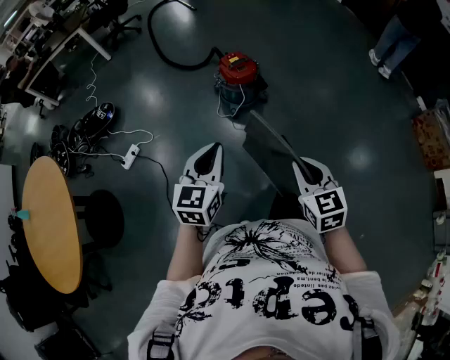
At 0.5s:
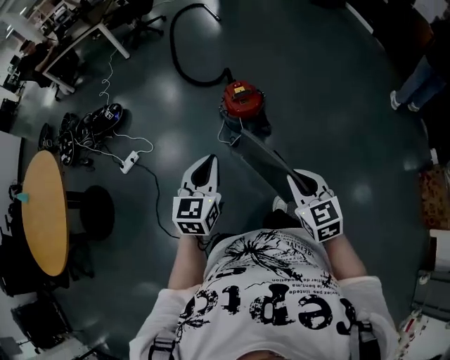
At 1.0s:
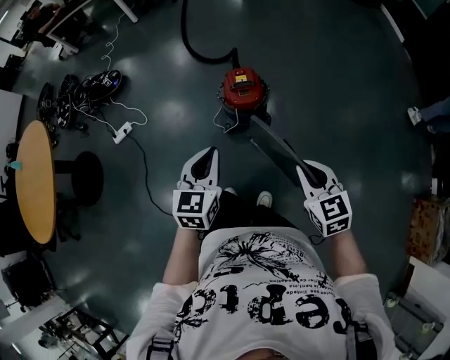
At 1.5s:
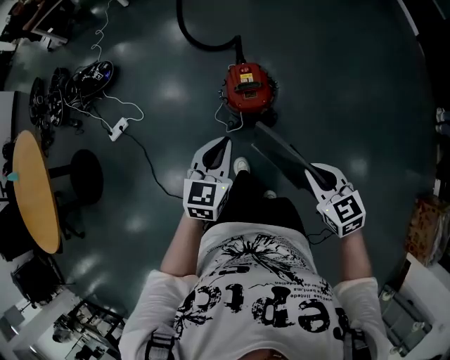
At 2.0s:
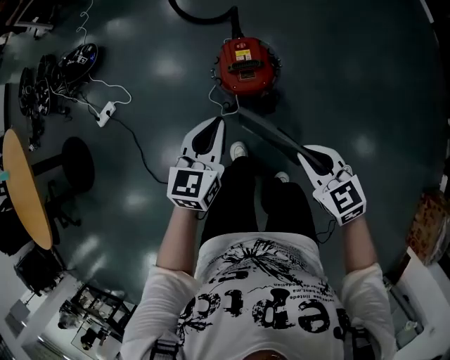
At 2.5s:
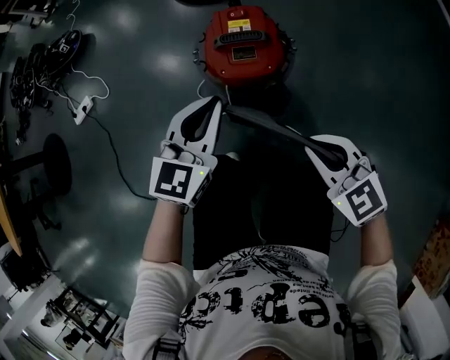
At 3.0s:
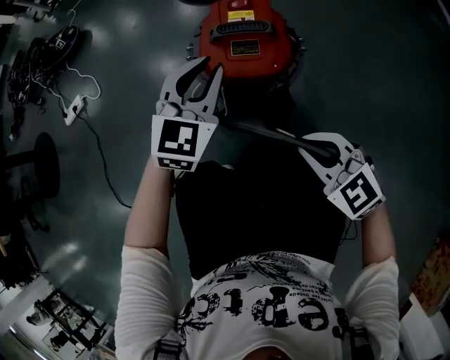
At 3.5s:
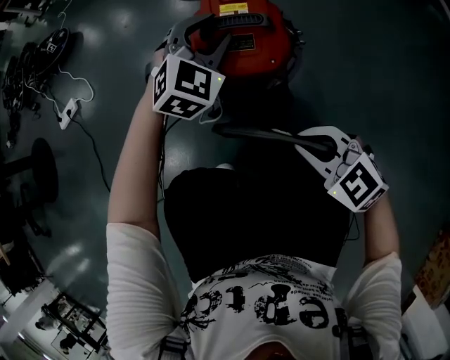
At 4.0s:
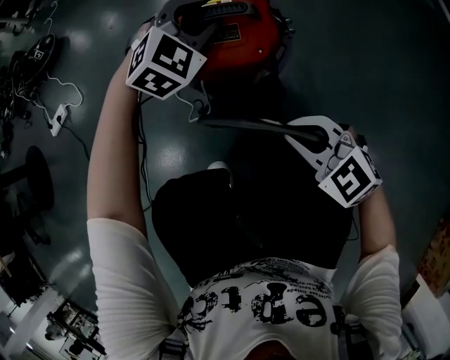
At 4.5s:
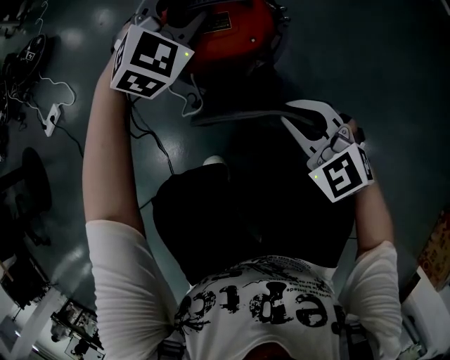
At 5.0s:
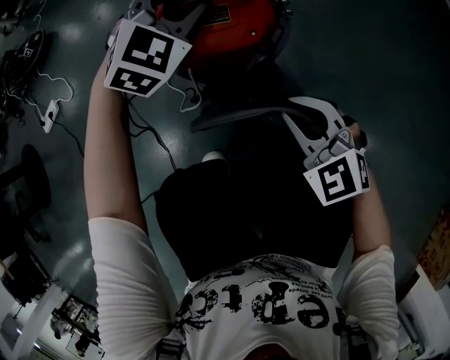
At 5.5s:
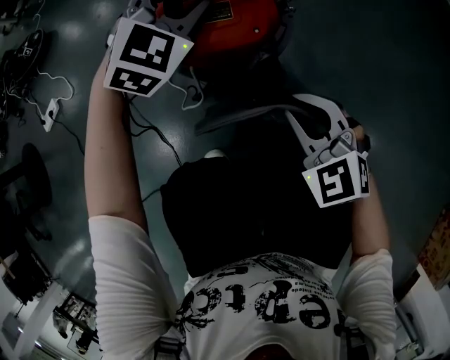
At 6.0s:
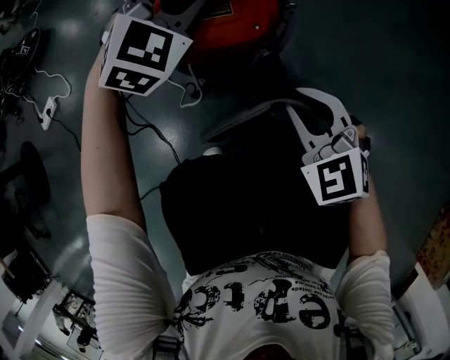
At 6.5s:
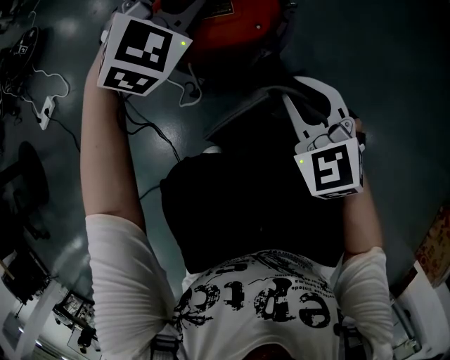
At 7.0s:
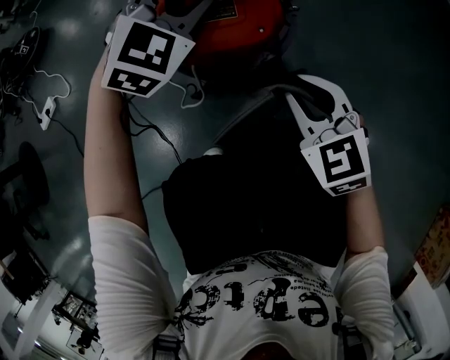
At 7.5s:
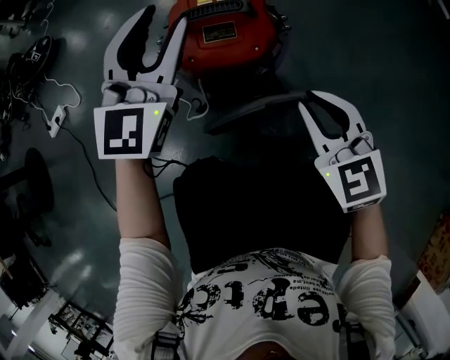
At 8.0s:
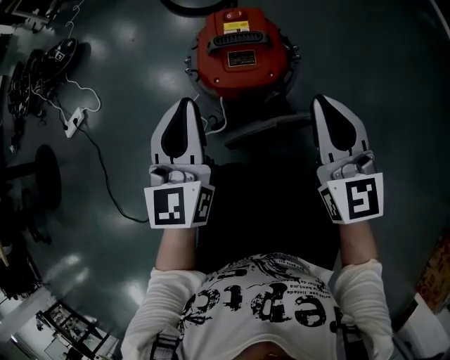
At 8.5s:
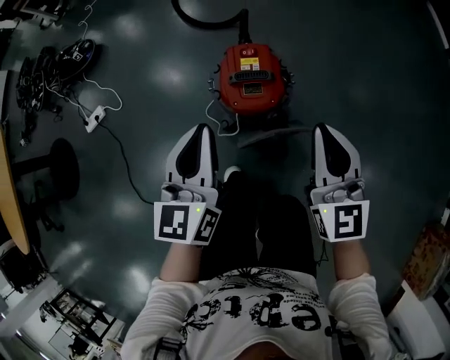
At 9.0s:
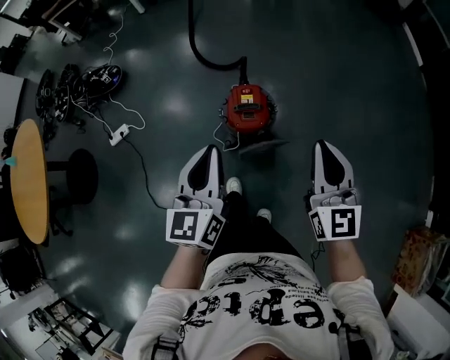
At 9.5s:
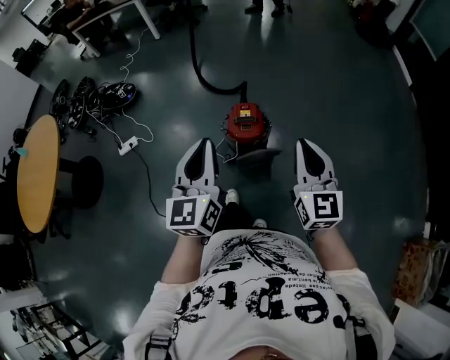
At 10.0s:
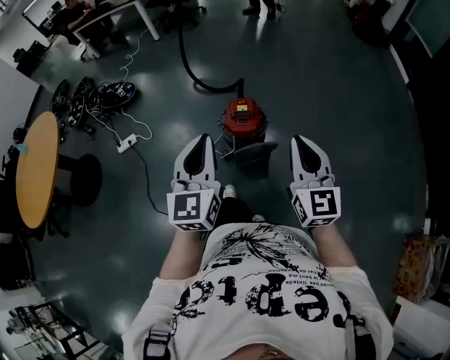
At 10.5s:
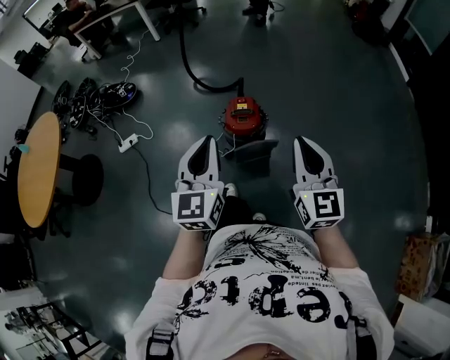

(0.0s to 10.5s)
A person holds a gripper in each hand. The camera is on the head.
0.0s - 2.0s: The pair of grippers is taken approximately 50 cm. The right gripper changes its angle by about 40 degrees.
2.0s - 4.0s: The right gripper moves downward, approximately 35 cm, and turns by roughly 30 degrees, while the left gripper is displaced downward and forward by approximately 40 cm, rolls clockwise, seen from behind, by roughly 50 degrees, and opens up.
4.0s - 6.5s: The right gripper is displaced forward by approximately 5 cm, and swivels roughly 30 degrees.
6.5s - 8.5s: The right gripper goes roughly 35 cm upward, and changes its angle by some 40 degrees. Meanwhile the left gripper goes roughly 35 cm upward and backward, rolls counterclockwise, seen from behind, by about 60 degrees, and closes up.
8.5s - 10.5s: The grippers both shift upward and backward by some 40 cm.

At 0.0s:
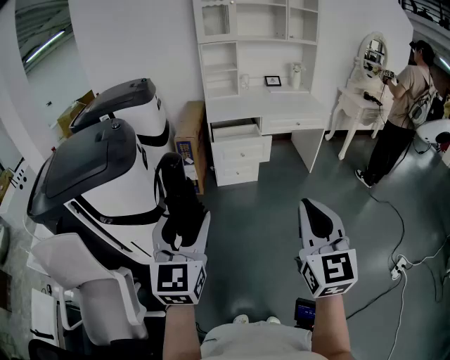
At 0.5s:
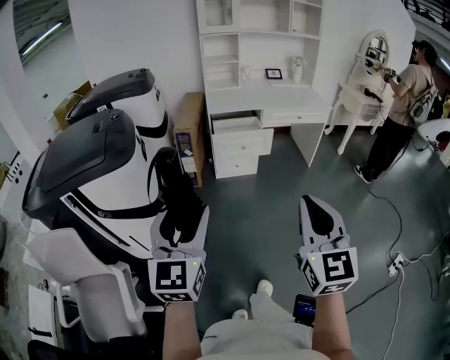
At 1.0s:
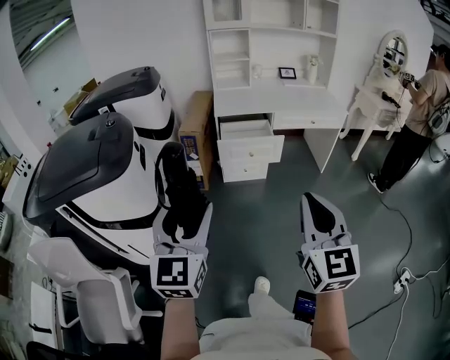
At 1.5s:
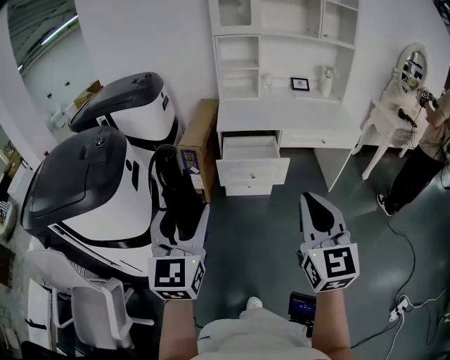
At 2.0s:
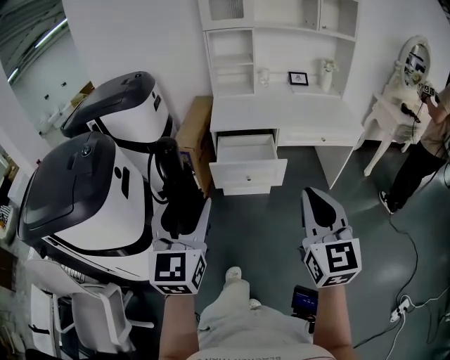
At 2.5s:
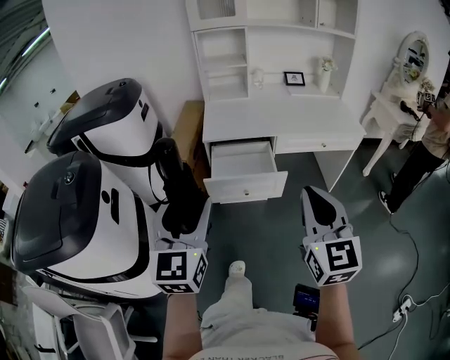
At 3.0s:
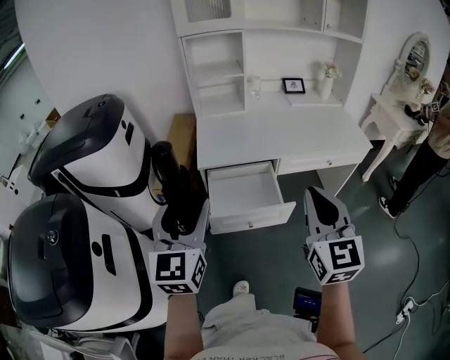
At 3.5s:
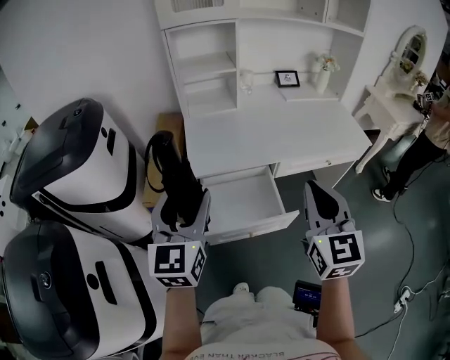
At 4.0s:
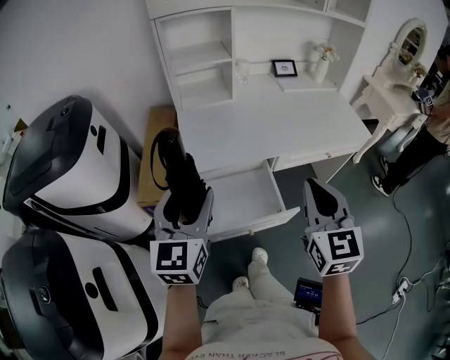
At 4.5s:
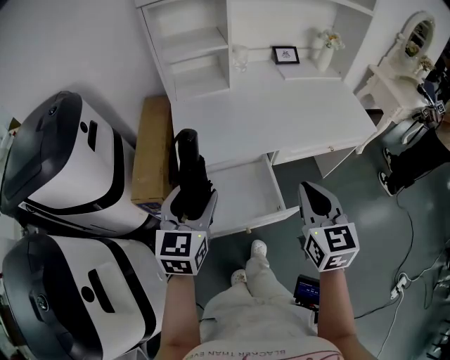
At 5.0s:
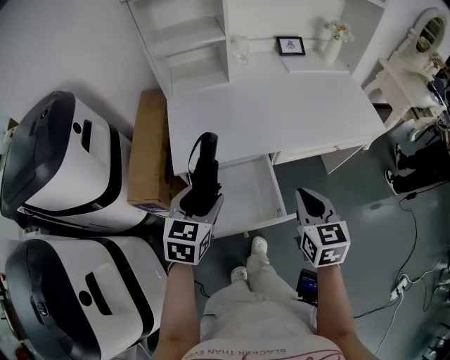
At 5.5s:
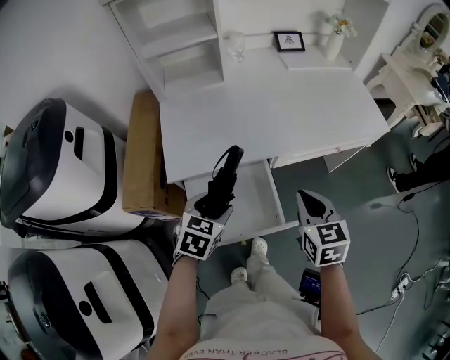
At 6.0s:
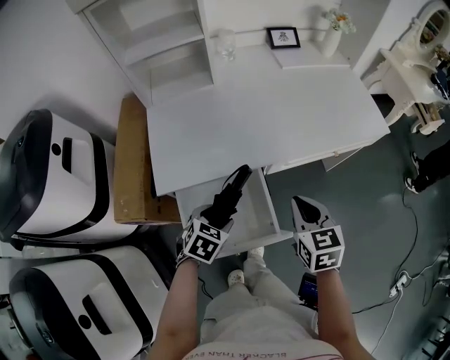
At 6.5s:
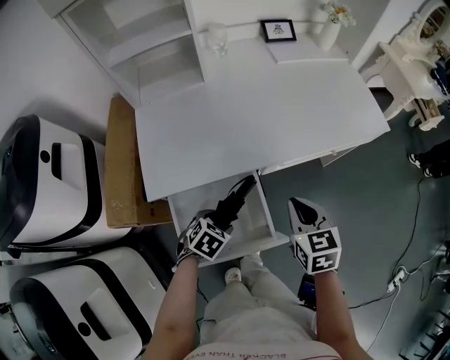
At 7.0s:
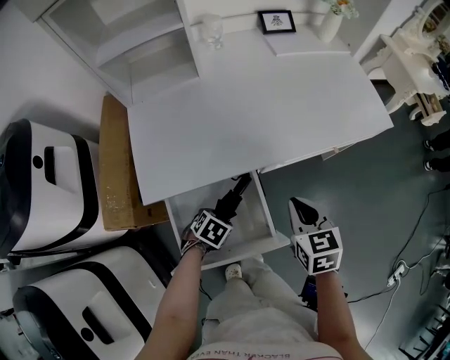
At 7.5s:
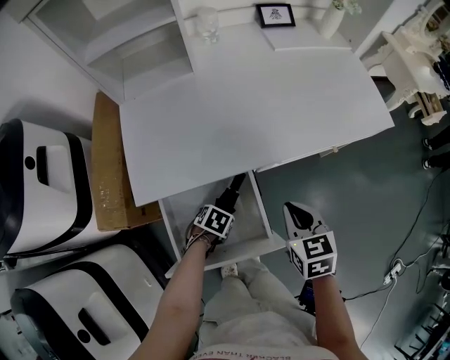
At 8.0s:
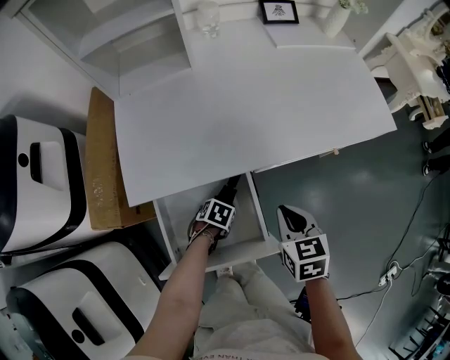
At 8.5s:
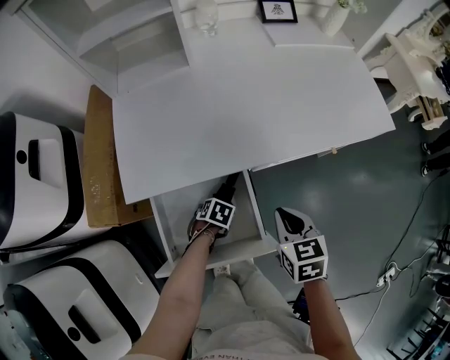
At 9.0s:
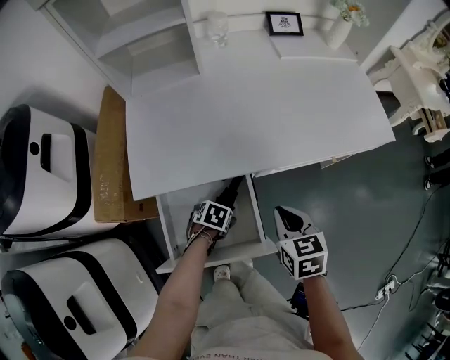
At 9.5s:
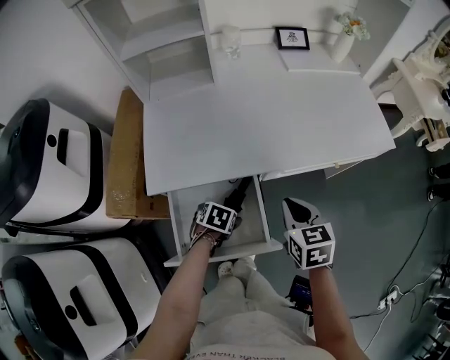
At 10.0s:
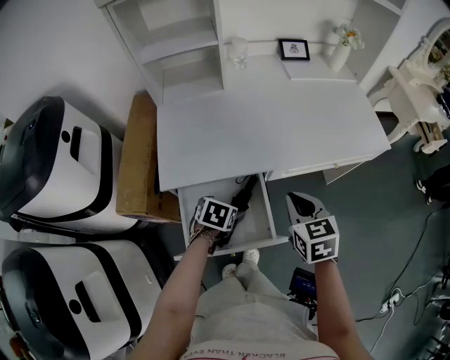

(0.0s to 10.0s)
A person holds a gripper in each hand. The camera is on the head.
0.0s - 2.0s: The two grippers go approximately 30 cm forward.
2.0s - 4.0s: The two grippers go about 40 cm forward.
4.0s - 6.0s: The right gripper goes about 25 cm downward and forward, and changes its angle by roughly 30 degrees. Meanwhile the left gripper moves downward, some 30 cm, and angles its fingers downward, by some 50 degrees.
6.0s - 8.0s: The right gripper moves downward, about 10 cm; the left gripper is displaced downward by approximately 20 cm, and swivels some 30 degrees.
8.0s - 10.0s: The right gripper is displaced upward by approximately 10 cm, while the left gripper heads upward, covering roughly 15 cm, rotates roughly 20 degrees, and opens up.

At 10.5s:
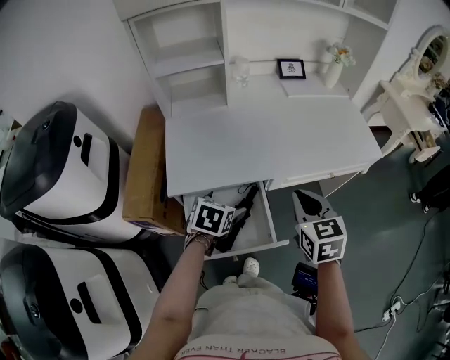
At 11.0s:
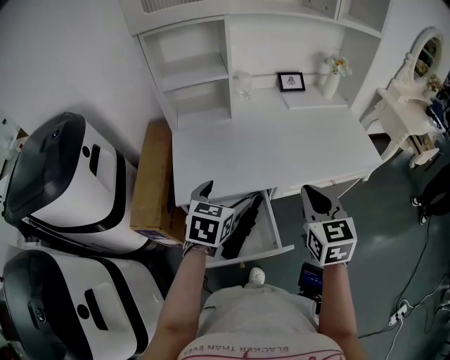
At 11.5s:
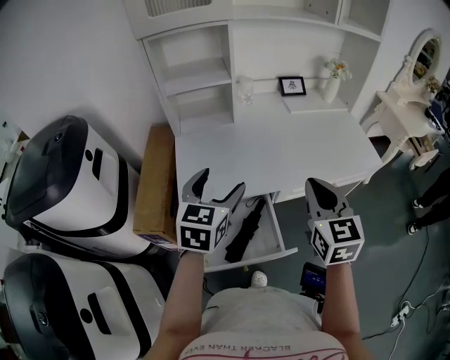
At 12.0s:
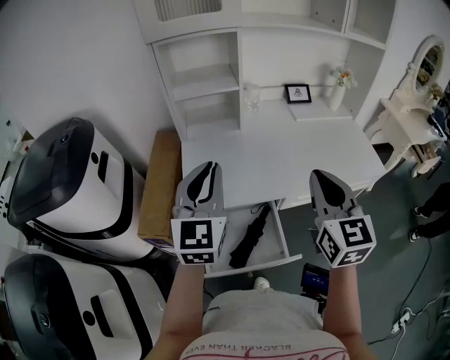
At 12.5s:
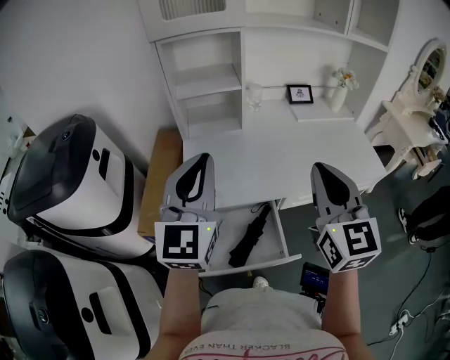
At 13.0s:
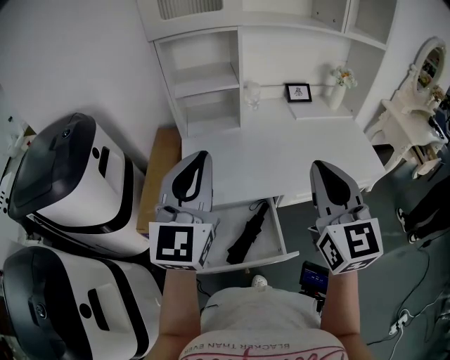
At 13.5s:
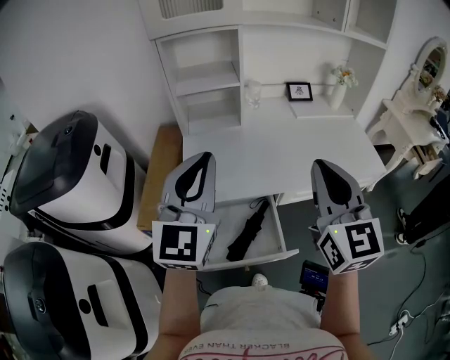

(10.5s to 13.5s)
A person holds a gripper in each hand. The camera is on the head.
10.5s - 12.0s: The right gripper travels upward by approximately 15 cm, and swivels some 20 degrees. Meanwhile the left gripper is displaced upward by roughly 30 cm, angles its fingers upward, by roughly 50 degrees, and closes up.
12.0s - 13.5s: The grippers both shift upward by approximately 5 cm.

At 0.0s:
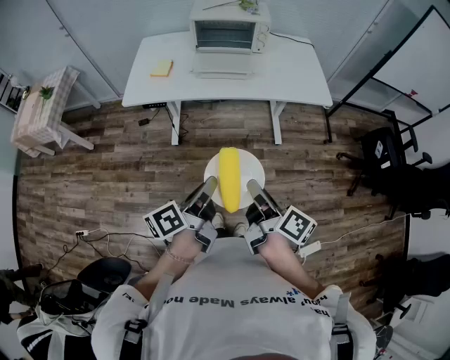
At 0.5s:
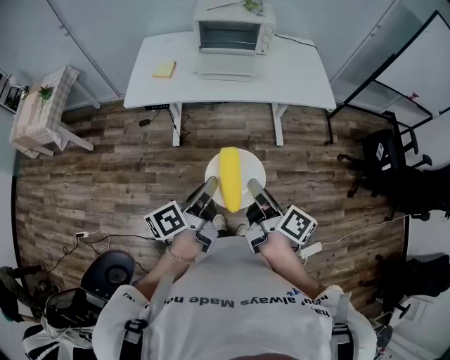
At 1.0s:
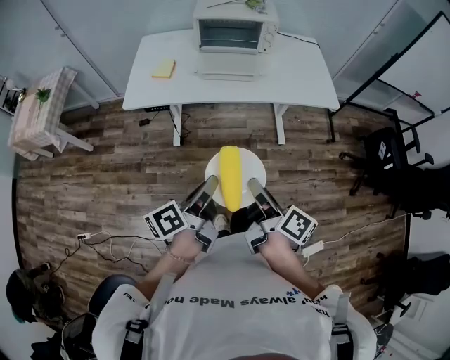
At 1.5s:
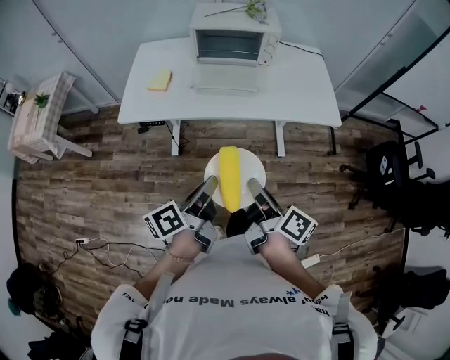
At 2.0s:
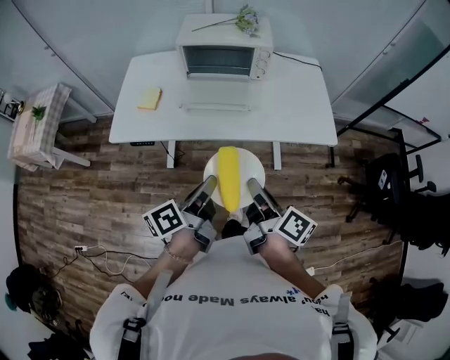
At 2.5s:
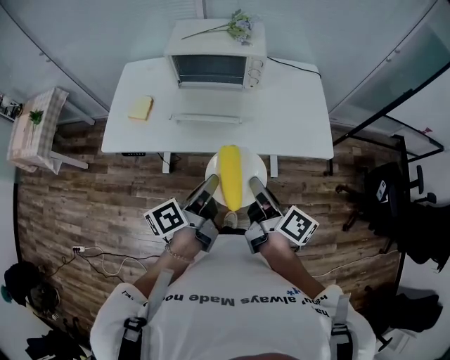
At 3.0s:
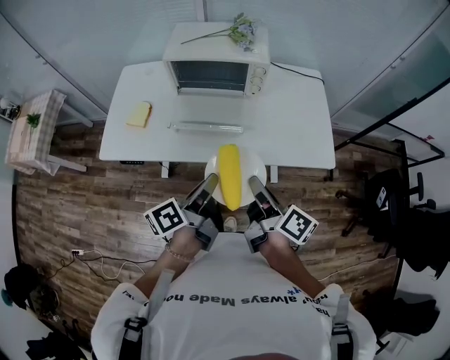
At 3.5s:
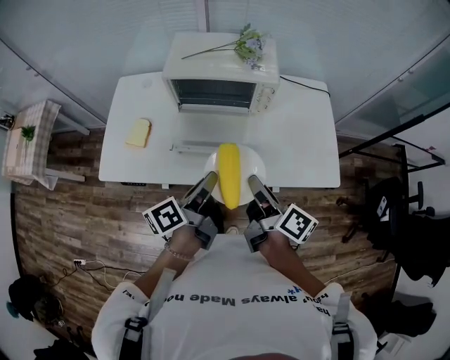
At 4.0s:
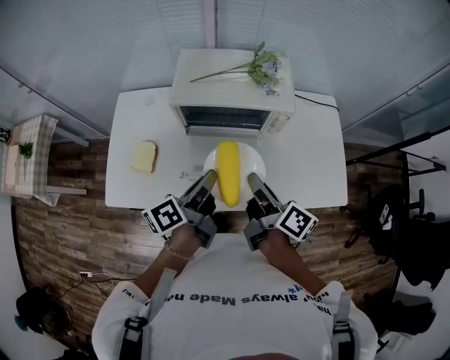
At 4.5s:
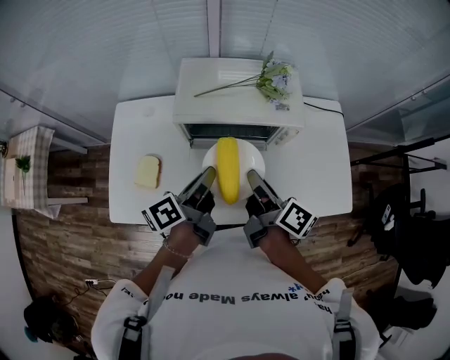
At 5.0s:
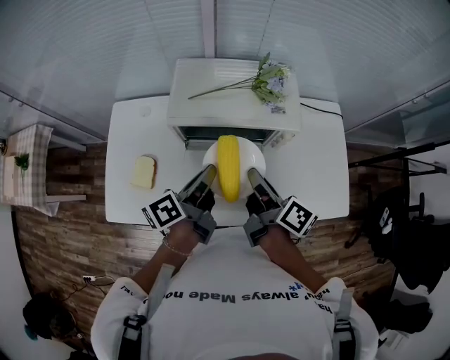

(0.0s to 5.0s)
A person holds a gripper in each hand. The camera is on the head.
0.0s - 2.5s: Both grippers travel together forward, some 35 cm.
2.5s - 5.0s: Both grippers travel together forward, about 35 cm.
